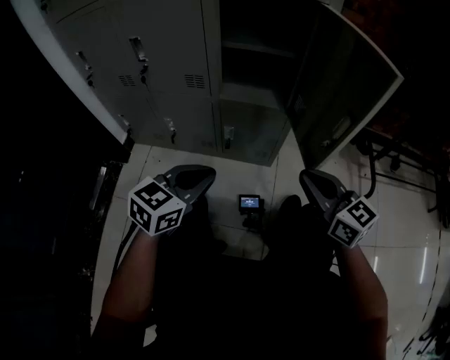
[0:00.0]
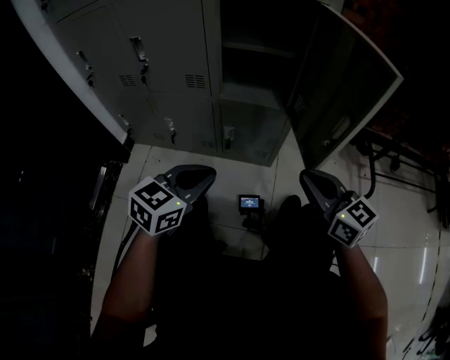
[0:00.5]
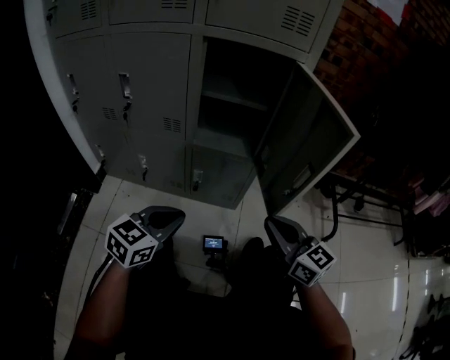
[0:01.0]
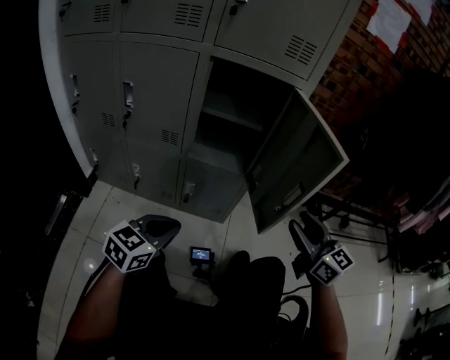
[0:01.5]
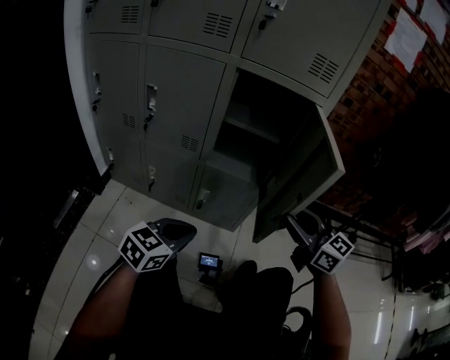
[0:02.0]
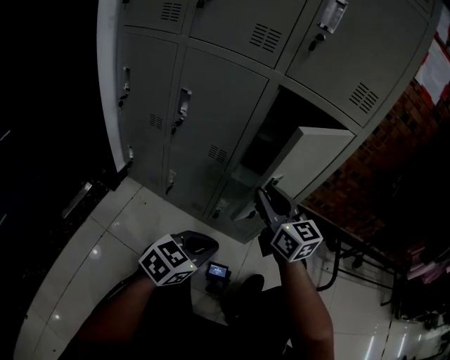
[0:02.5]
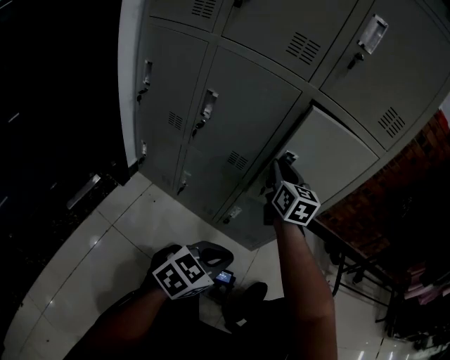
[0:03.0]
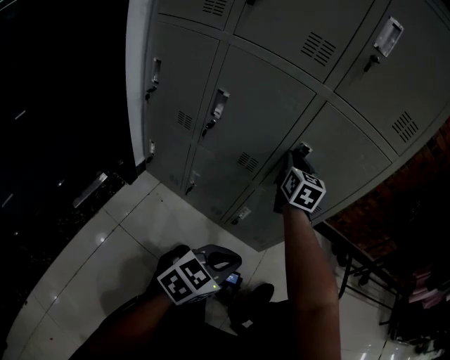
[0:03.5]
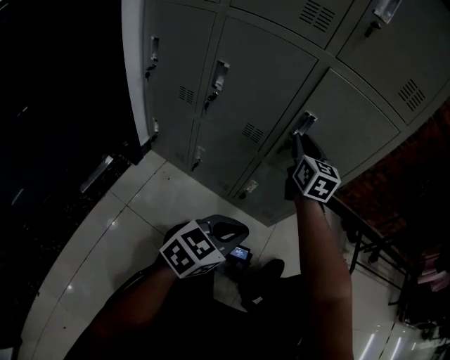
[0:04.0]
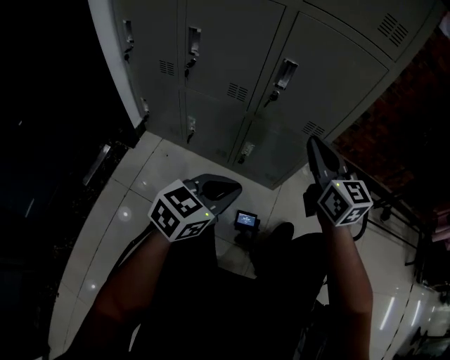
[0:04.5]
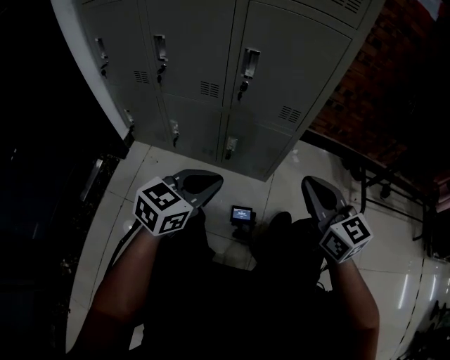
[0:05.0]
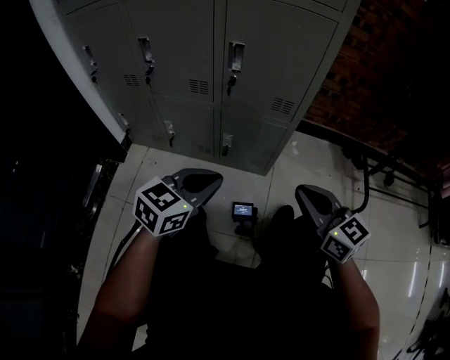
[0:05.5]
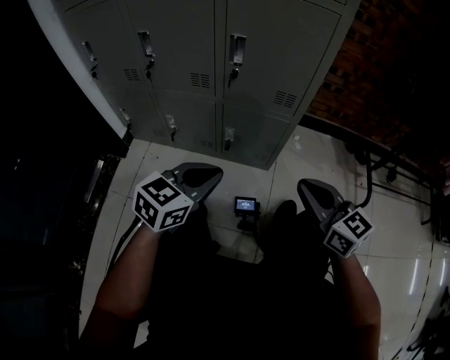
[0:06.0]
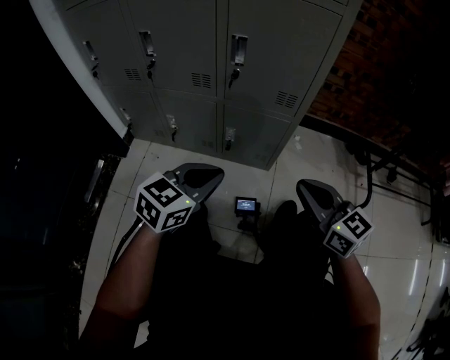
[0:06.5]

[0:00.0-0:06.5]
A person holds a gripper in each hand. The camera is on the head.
0:00.0 to 0:02.0: The right gripper shifts some 10 cm upward and forward, goes to the right and returns, about 10 cm each way, and opens up.
0:02.0 to 0:04.5: The right gripper heads to the left and forward, covering approximately 15 cm, and closes up.
0:04.5 to 0:06.5: The right gripper is displaced backward, to the right and downward by some 20 cm.

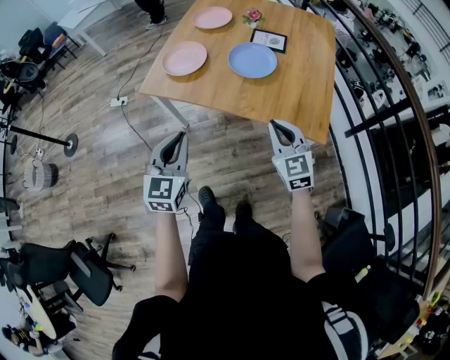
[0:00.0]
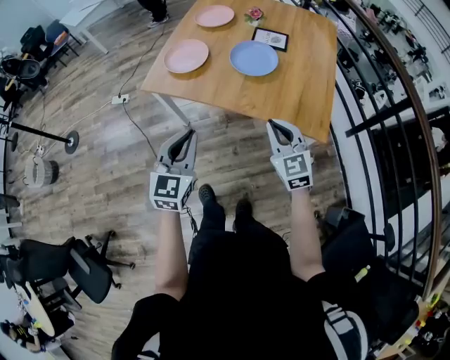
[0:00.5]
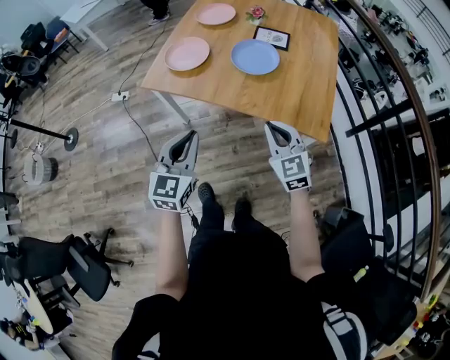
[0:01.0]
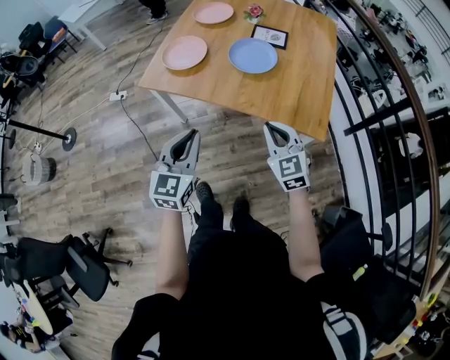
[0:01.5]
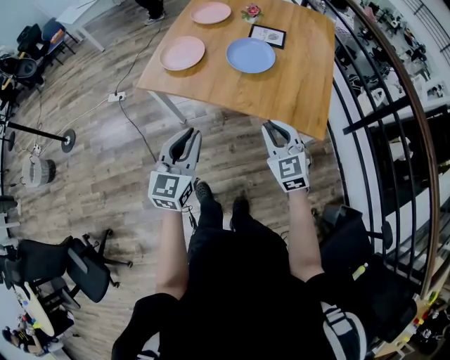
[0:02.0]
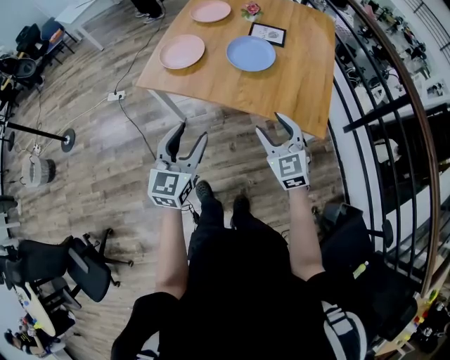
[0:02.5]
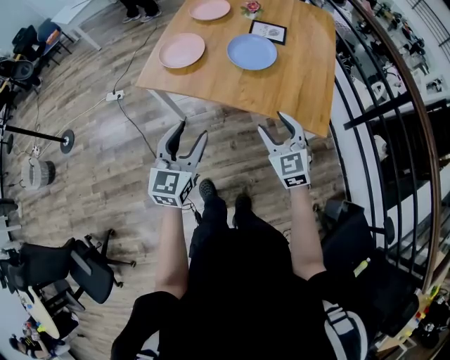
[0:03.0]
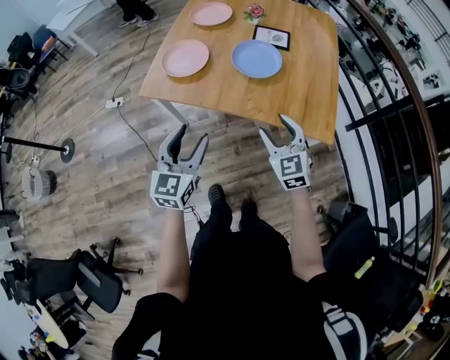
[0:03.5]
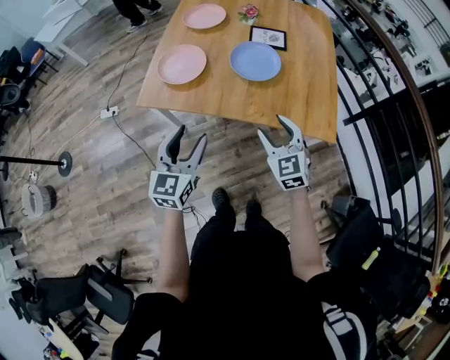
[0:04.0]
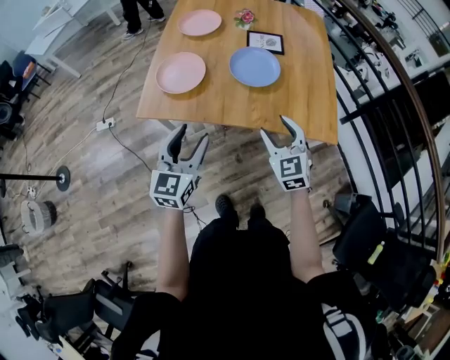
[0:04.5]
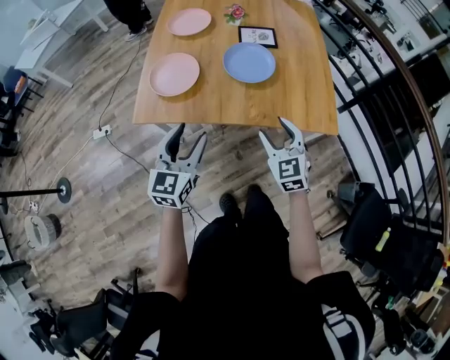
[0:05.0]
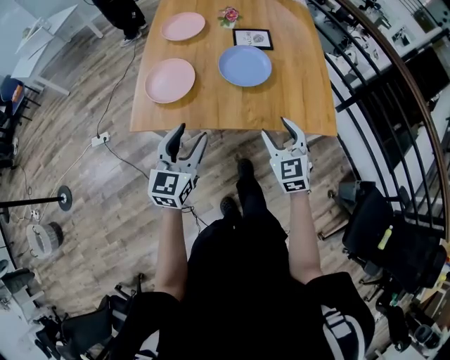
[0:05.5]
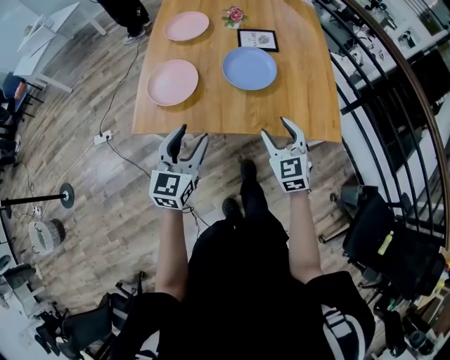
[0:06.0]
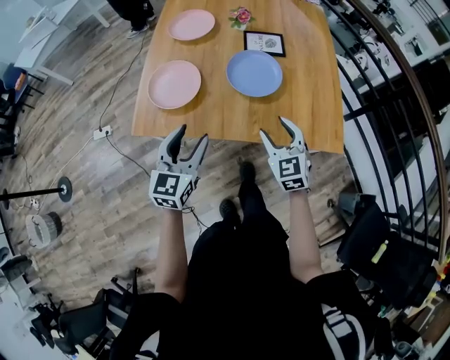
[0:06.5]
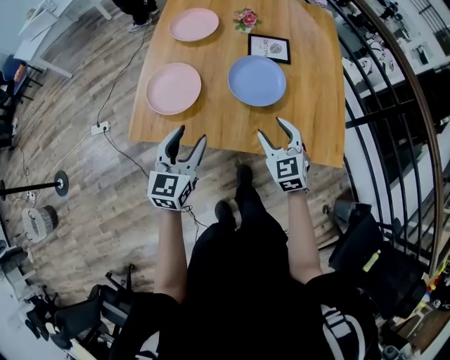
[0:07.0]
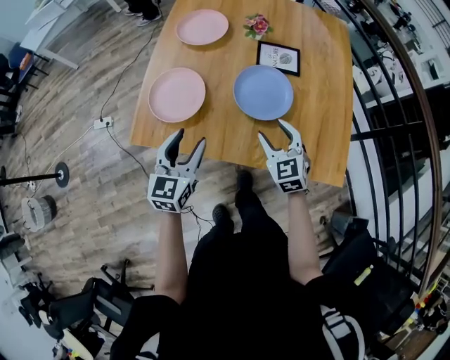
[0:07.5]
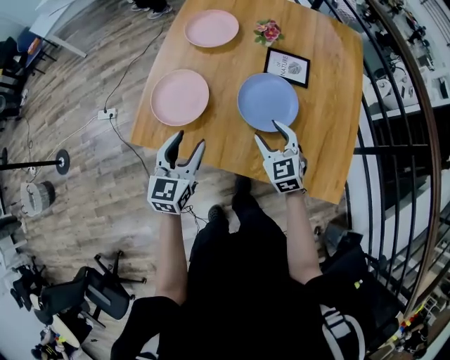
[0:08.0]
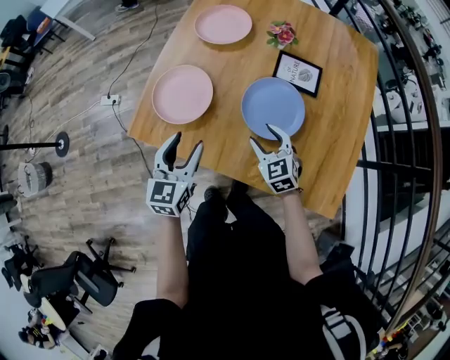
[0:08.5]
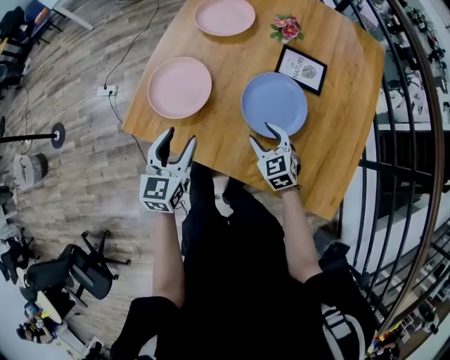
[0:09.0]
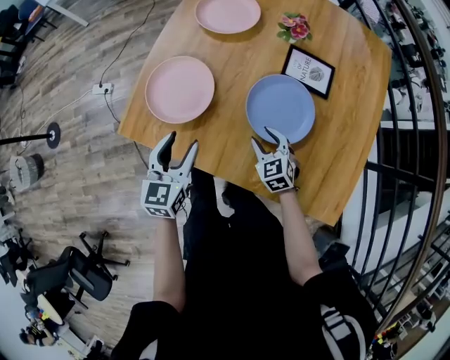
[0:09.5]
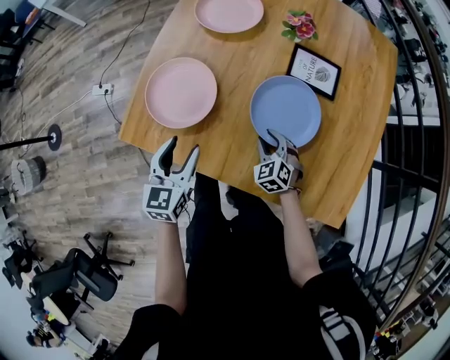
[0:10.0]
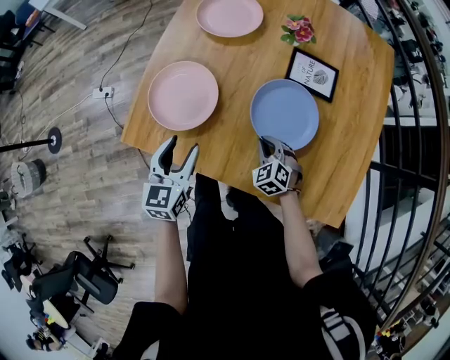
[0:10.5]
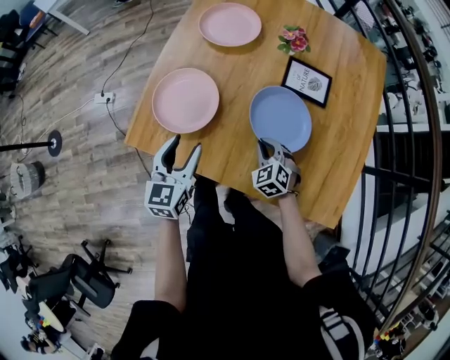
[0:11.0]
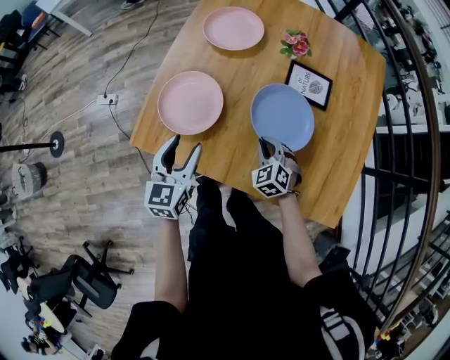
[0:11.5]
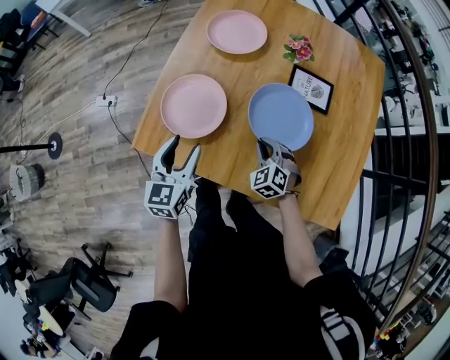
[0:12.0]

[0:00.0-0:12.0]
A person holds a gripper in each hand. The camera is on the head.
0:00.0 to 0:02.0: The grippers make only small movements.
0:02.0 to 0:04.0: Both grippers move forward and to the left, roughly 10 cm. The right gripper opens its fingers. Meanwhile the left gripper opens up.
0:04.0 to 0:06.0: The right gripper shifts roughly 5 cm forward. The left gripper goes some 10 cm forward.
0:06.0 to 0:08.0: Both grippers travel together forward, about 15 cm.
0:08.0 to 0:10.0: The left gripper moves downward, approximately 10 cm. Meanwhile the right gripper is displaced downward by roughly 20 cm, rotates roughly 20 degrees, and closes up.
0:10.0 to 0:12.0: Both grippers move upward, some 5 cm. The right gripper closes.

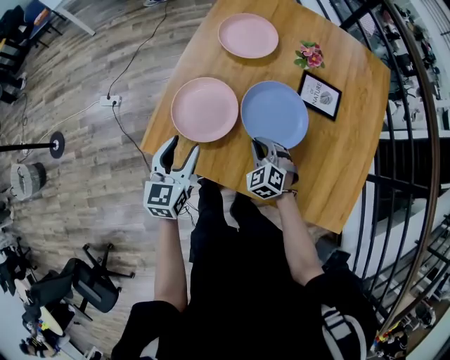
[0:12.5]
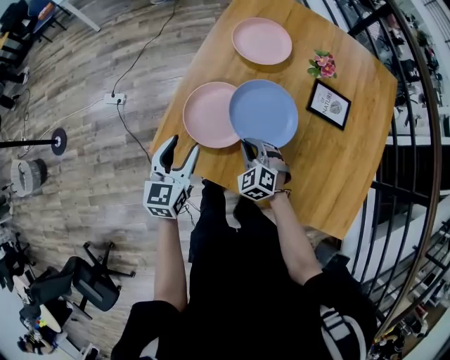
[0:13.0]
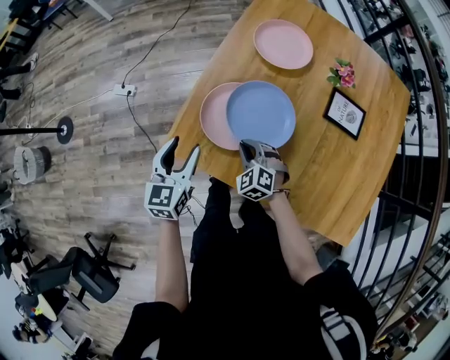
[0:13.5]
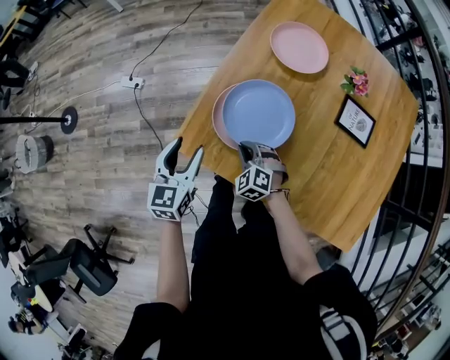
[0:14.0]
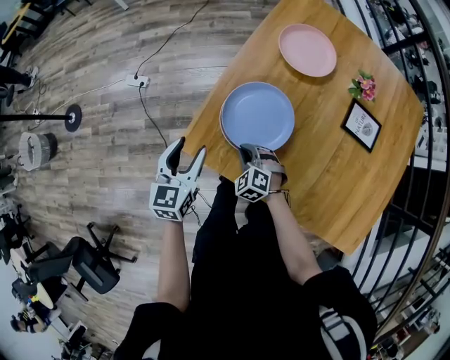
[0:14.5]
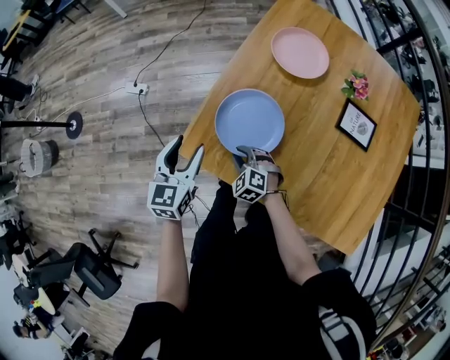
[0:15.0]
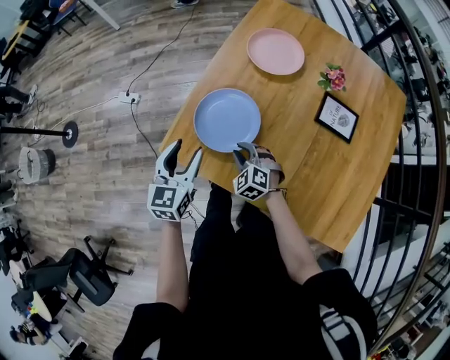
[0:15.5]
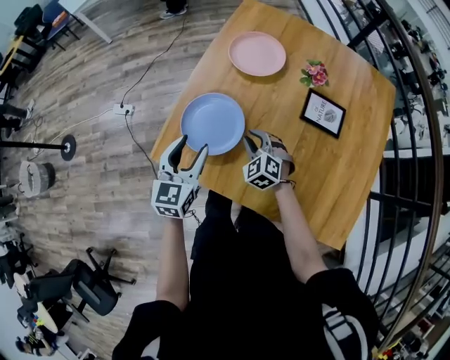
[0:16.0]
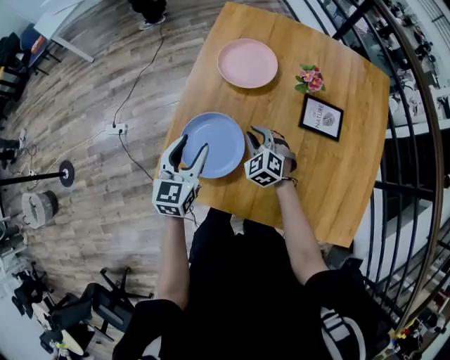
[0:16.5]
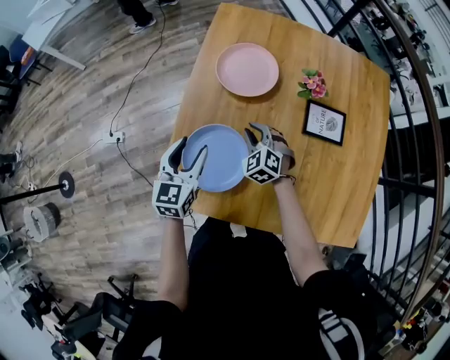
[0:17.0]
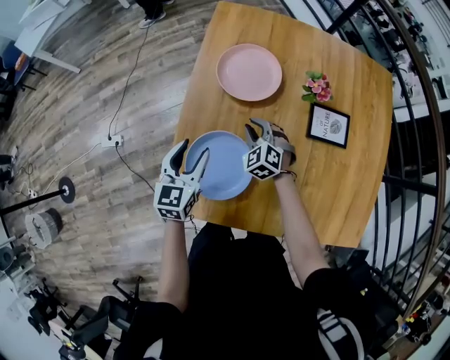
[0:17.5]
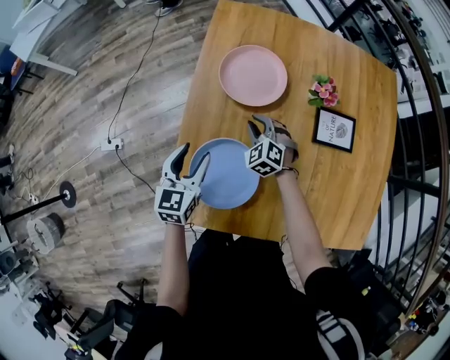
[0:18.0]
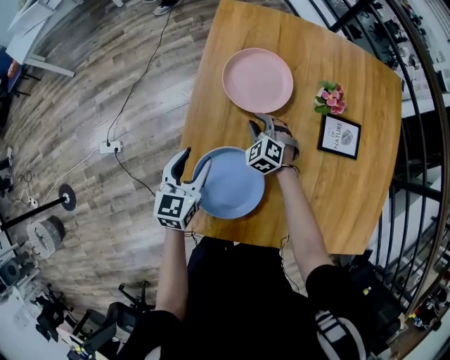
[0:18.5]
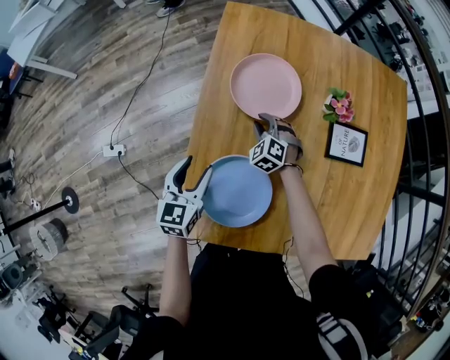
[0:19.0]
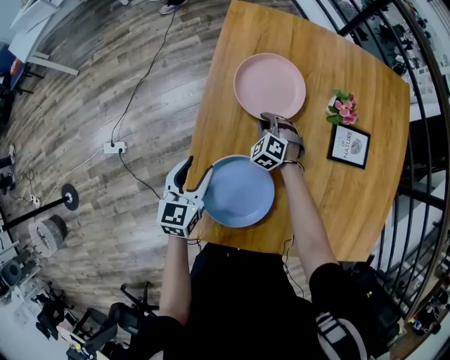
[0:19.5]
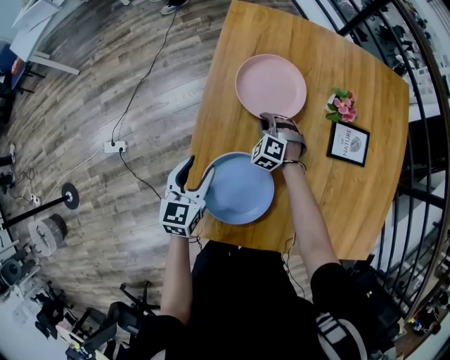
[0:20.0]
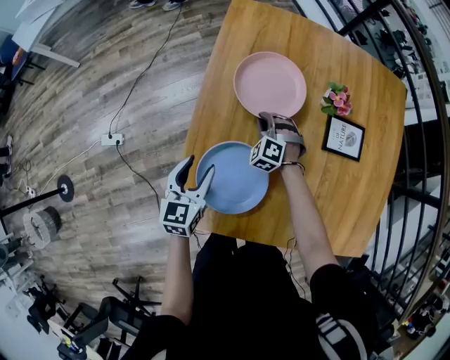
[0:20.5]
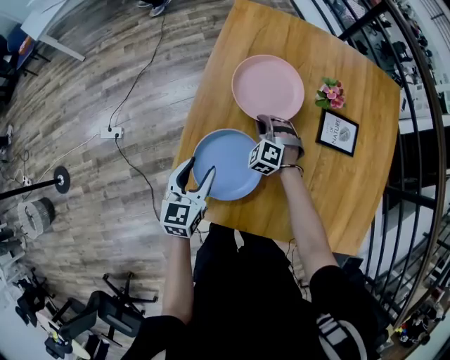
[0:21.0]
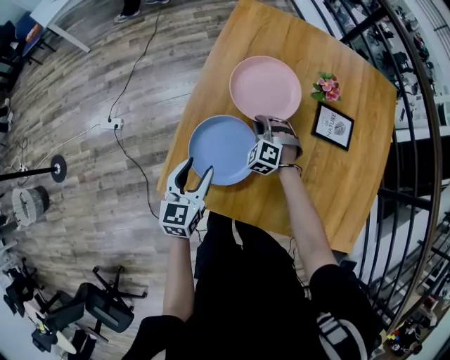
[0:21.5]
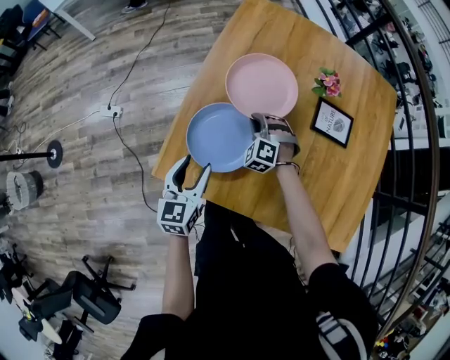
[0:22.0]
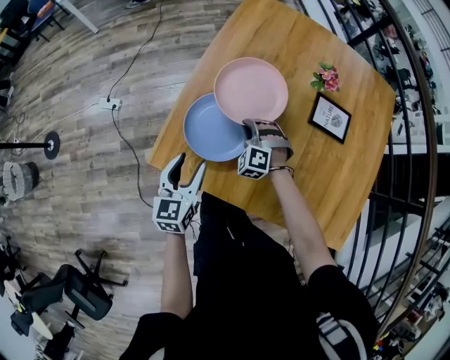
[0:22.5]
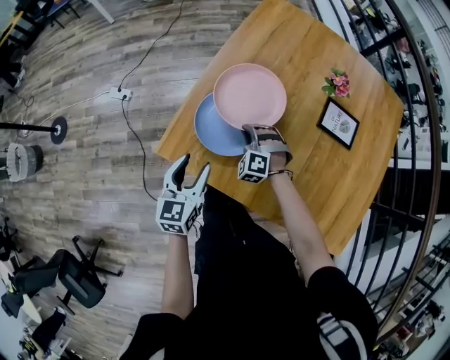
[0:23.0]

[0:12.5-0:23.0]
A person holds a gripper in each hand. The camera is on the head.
0:12.5 to 0:14.5: The right gripper heads to the left, covering about 20 cm. The left gripper moves to the left, about 15 cm.
0:14.5 to 0:16.5: The left gripper shifts some 15 cm to the right and forward, while the right gripper moves to the right, forward and upward, about 25 cm, and swivels roughly 20 degrees.
0:16.5 to 0:19.0: The right gripper moves forward and downward, about 20 cm. Meanwhile the left gripper travels forward, downward and to the left by roughly 15 cm.
0:19.0 to 0:21.0: The two grippers go roughly 10 cm backward.
0:21.0 to 0:23.0: Both grippers move backward, some 15 cm. The right gripper rotates roughly 20 degrees.
